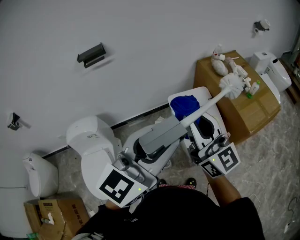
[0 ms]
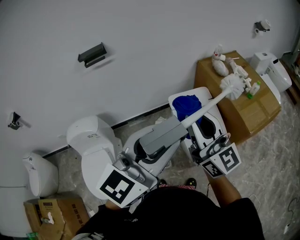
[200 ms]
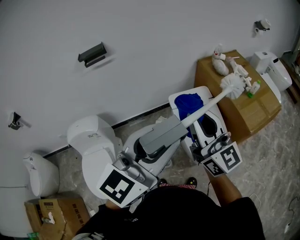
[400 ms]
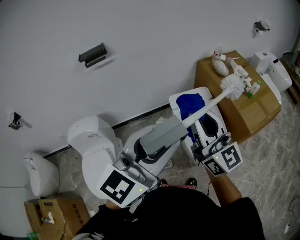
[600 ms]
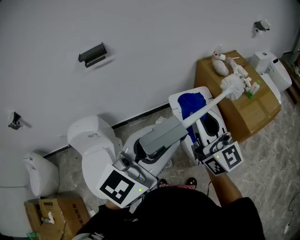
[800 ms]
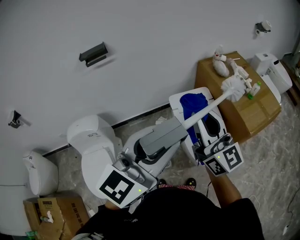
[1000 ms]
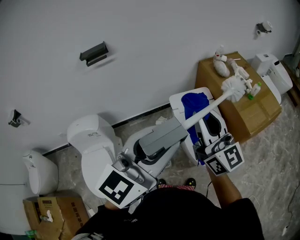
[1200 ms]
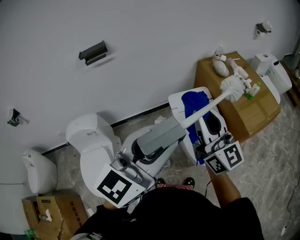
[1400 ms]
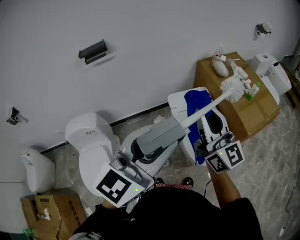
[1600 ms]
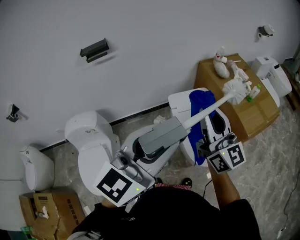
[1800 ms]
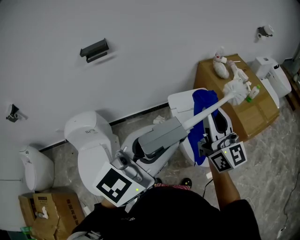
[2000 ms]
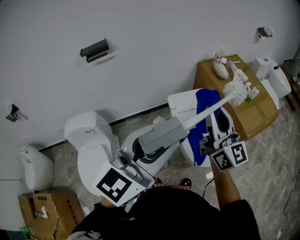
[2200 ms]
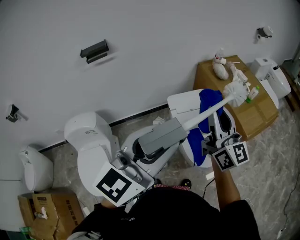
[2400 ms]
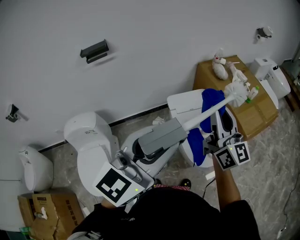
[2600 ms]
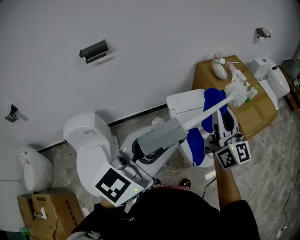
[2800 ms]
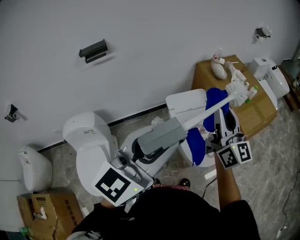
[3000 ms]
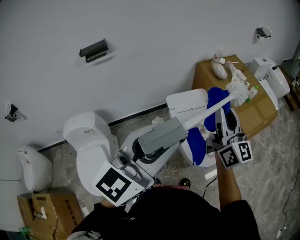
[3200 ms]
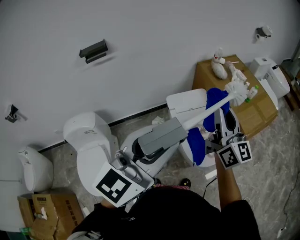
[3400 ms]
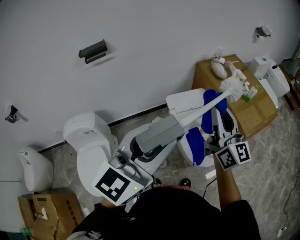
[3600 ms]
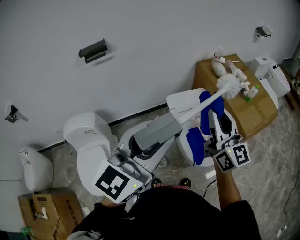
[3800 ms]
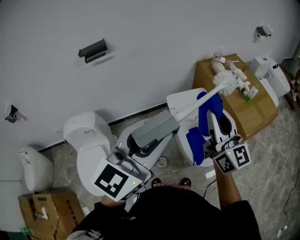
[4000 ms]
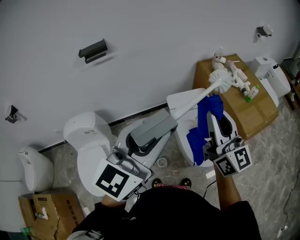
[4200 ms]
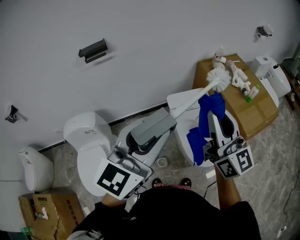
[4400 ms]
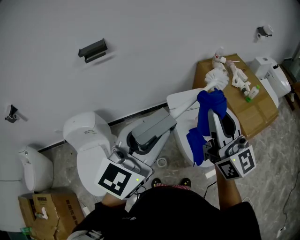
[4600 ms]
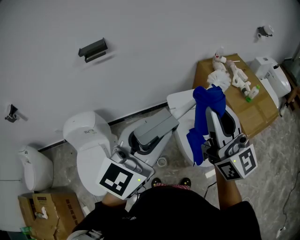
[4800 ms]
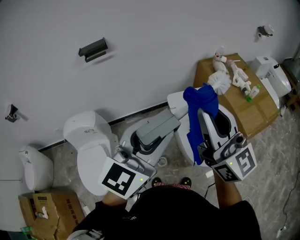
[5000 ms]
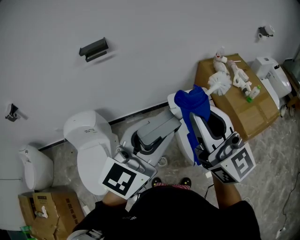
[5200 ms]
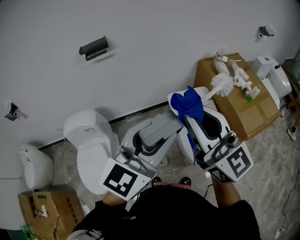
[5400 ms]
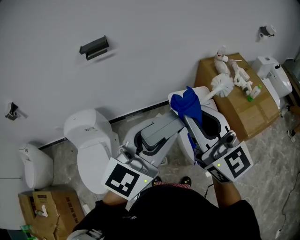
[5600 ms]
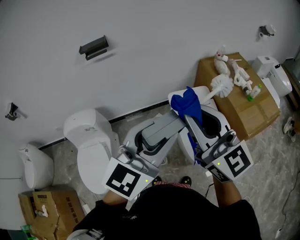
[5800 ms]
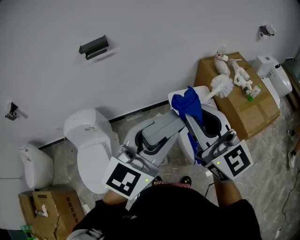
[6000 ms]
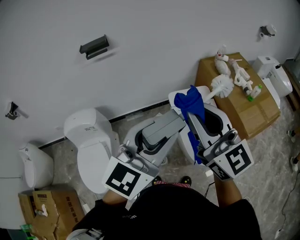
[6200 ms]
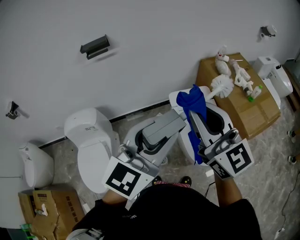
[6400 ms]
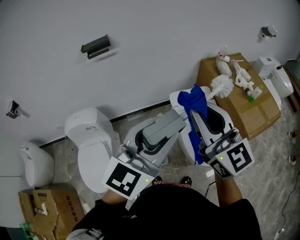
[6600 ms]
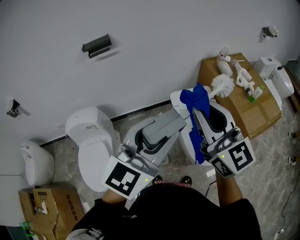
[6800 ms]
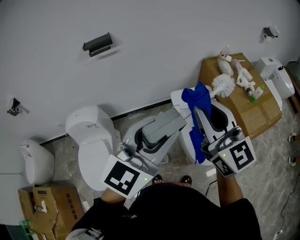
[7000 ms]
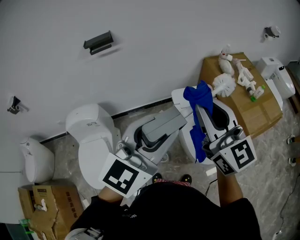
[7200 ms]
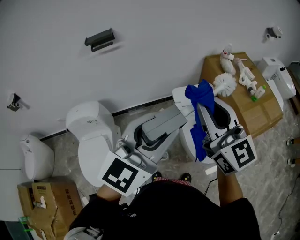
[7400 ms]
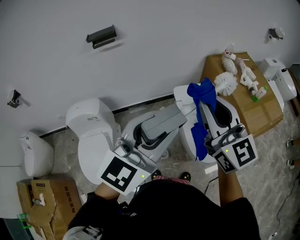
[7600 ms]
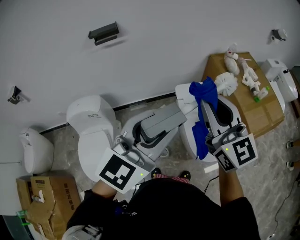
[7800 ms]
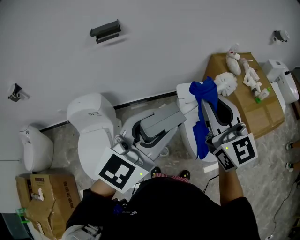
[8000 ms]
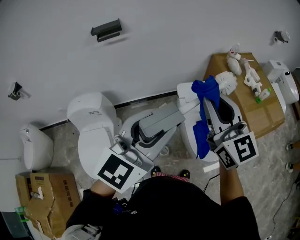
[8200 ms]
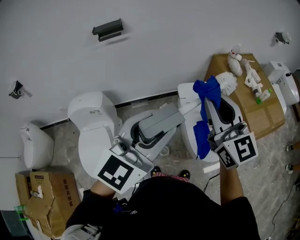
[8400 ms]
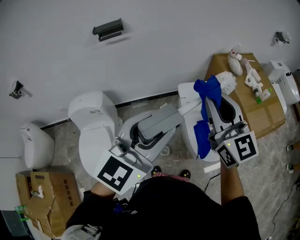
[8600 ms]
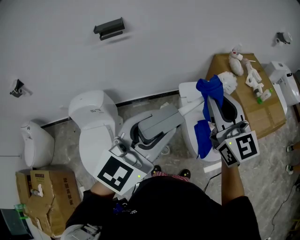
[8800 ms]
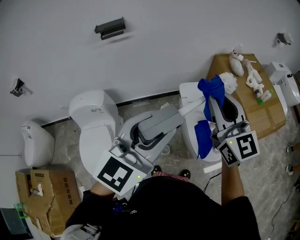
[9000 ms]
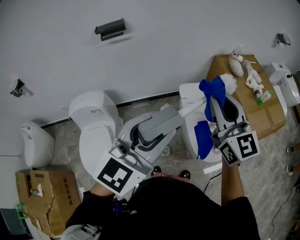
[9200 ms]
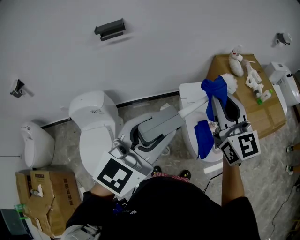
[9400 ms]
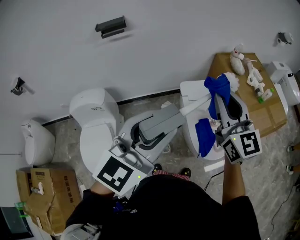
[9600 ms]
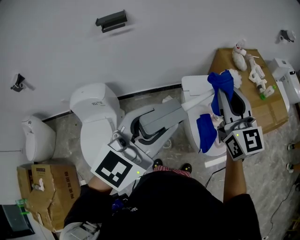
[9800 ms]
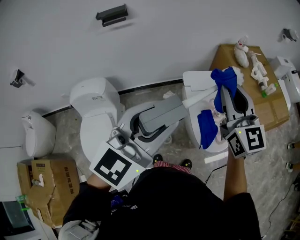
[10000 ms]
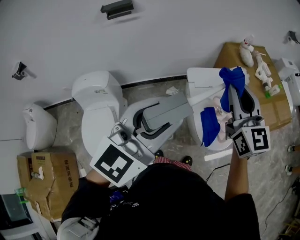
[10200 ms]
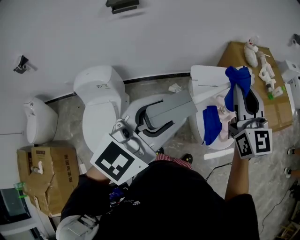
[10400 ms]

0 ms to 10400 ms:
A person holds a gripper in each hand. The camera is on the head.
0 ms to 1400 ms: The grippers stay close to where they were, moving slightly.
1400 ms to 3000 ms: The right gripper moves to the right, approximately 5 cm.
3000 ms to 4400 ms: The right gripper moves some 5 cm.
4400 ms to 6000 ms: The right gripper heads to the left, covering roughly 10 cm.
6000 ms to 7400 ms: The grippers move only a little.
7400 ms to 9000 ms: The grippers move only a little.
9000 ms to 10400 ms: The grippers stay close to where they were, moving slightly.

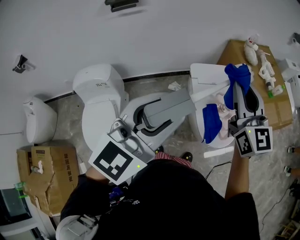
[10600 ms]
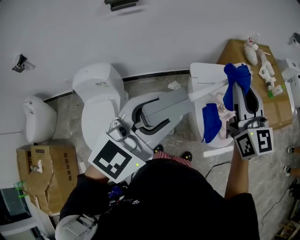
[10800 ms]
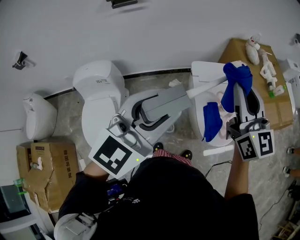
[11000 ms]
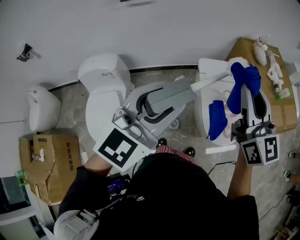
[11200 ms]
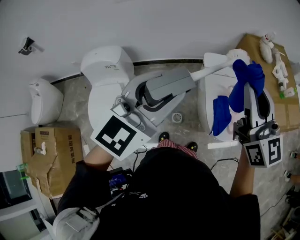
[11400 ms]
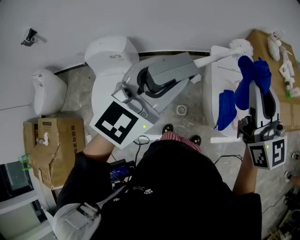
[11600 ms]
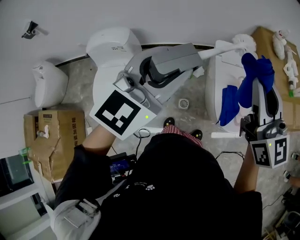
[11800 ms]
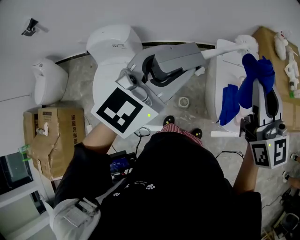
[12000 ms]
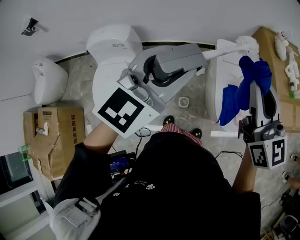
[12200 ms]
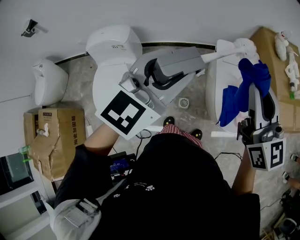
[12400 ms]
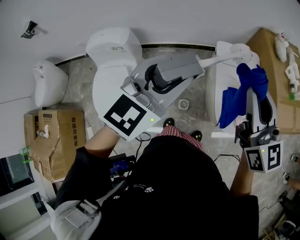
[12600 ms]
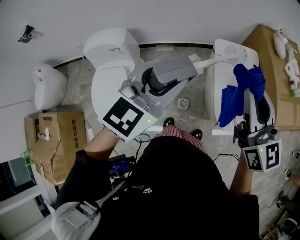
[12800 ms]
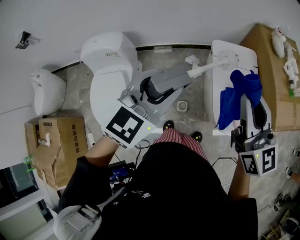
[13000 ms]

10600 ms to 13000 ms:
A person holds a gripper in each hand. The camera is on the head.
10600 ms to 11800 ms: The left gripper shifts about 5 cm to the left. Meanwhile the right gripper ends up roughly 5 cm from where it was.
11800 ms to 13000 ms: The left gripper shifts some 5 cm downward.

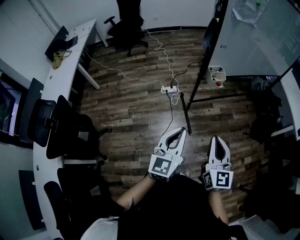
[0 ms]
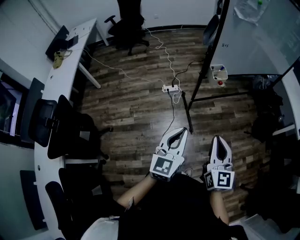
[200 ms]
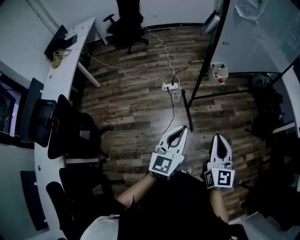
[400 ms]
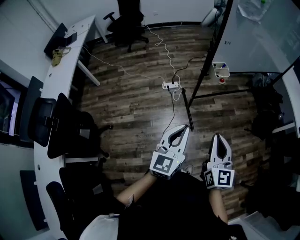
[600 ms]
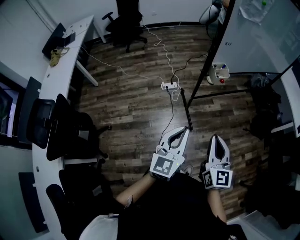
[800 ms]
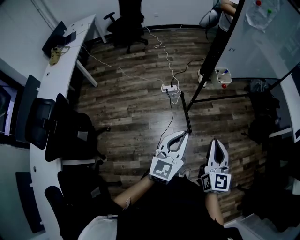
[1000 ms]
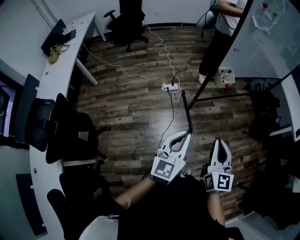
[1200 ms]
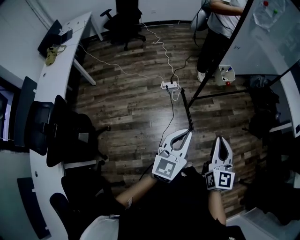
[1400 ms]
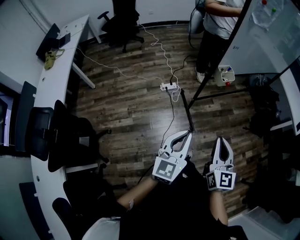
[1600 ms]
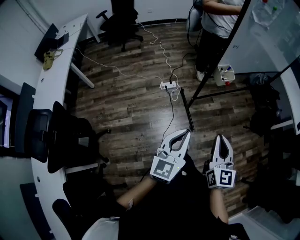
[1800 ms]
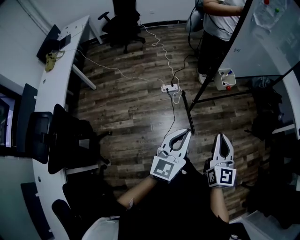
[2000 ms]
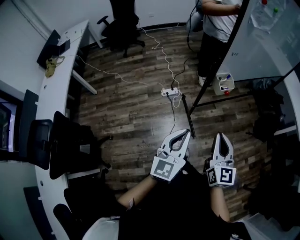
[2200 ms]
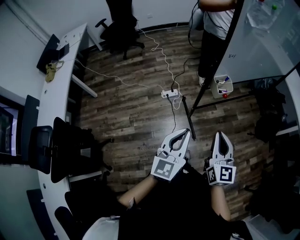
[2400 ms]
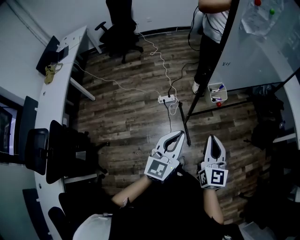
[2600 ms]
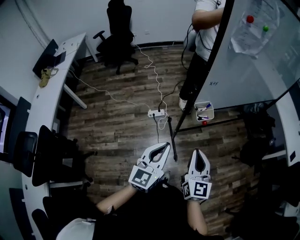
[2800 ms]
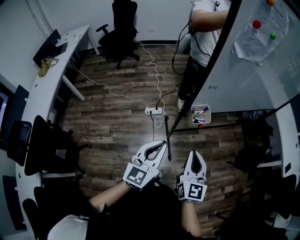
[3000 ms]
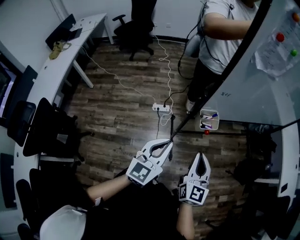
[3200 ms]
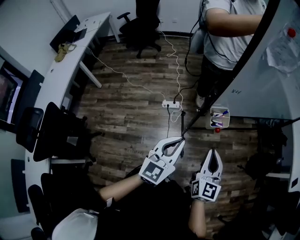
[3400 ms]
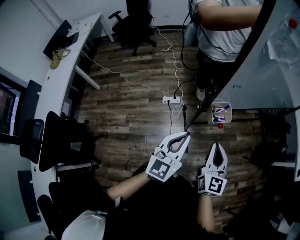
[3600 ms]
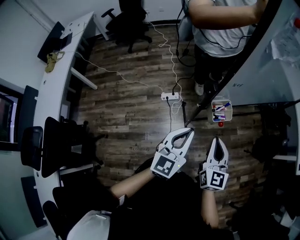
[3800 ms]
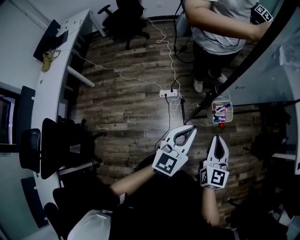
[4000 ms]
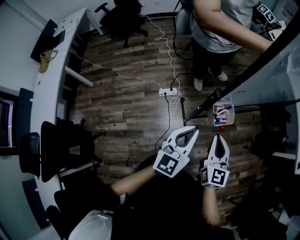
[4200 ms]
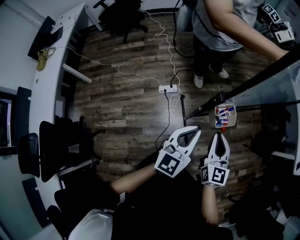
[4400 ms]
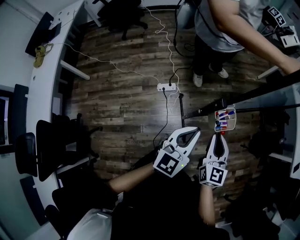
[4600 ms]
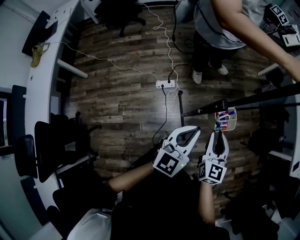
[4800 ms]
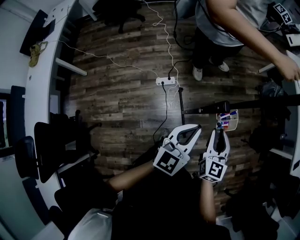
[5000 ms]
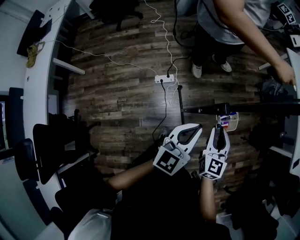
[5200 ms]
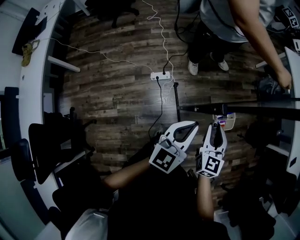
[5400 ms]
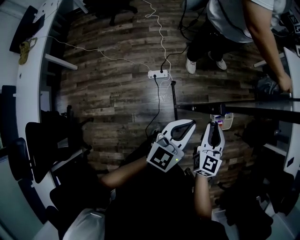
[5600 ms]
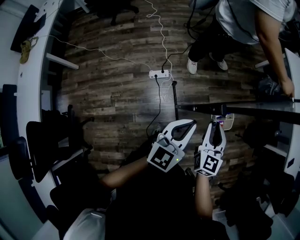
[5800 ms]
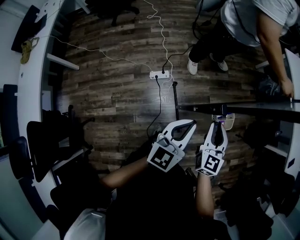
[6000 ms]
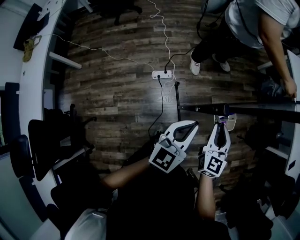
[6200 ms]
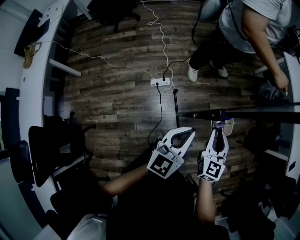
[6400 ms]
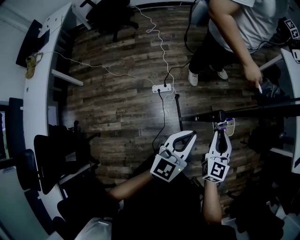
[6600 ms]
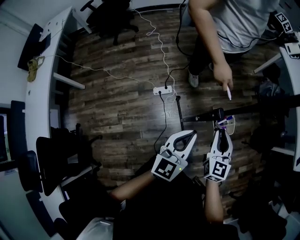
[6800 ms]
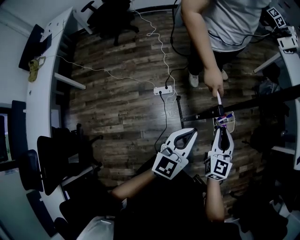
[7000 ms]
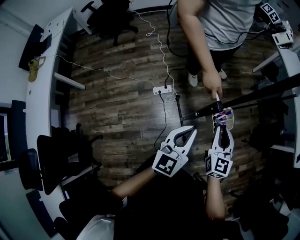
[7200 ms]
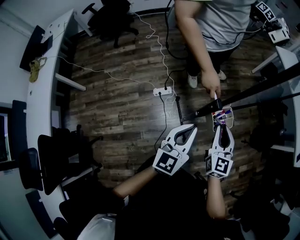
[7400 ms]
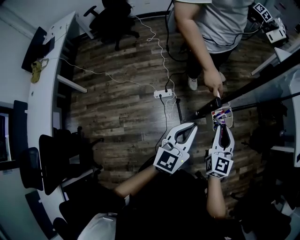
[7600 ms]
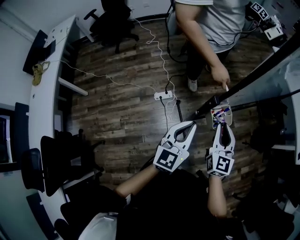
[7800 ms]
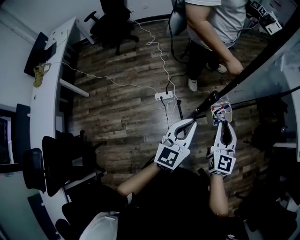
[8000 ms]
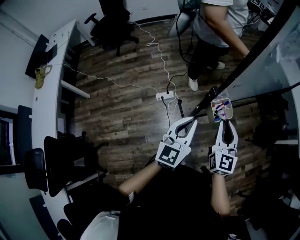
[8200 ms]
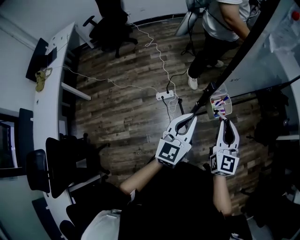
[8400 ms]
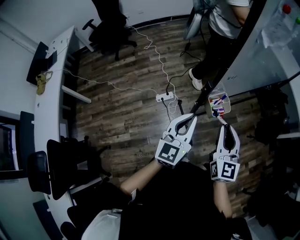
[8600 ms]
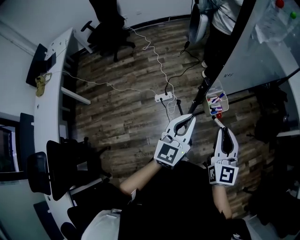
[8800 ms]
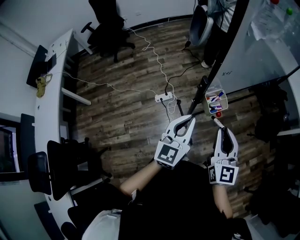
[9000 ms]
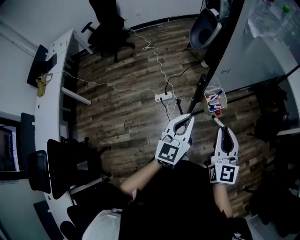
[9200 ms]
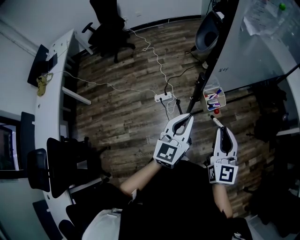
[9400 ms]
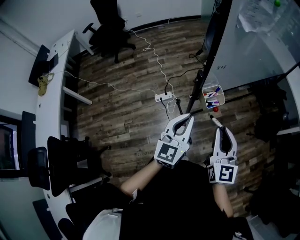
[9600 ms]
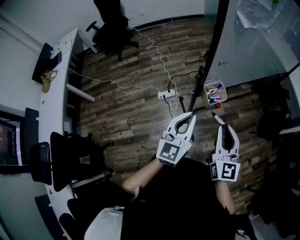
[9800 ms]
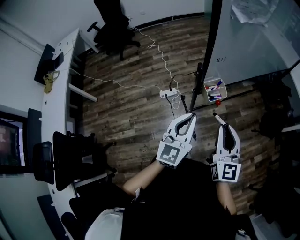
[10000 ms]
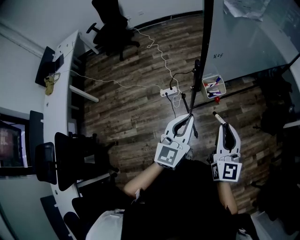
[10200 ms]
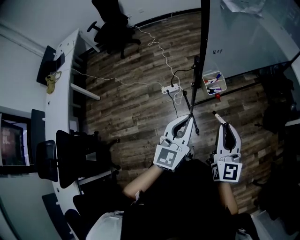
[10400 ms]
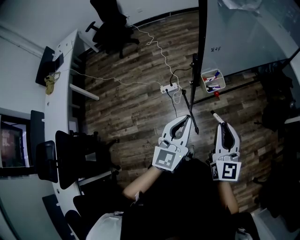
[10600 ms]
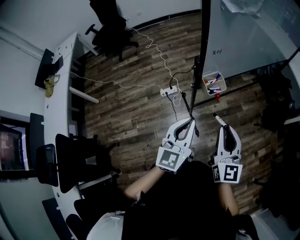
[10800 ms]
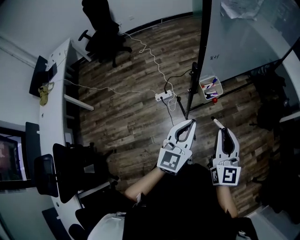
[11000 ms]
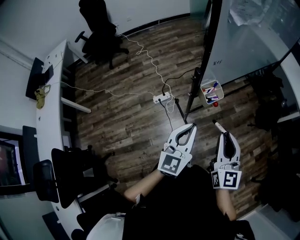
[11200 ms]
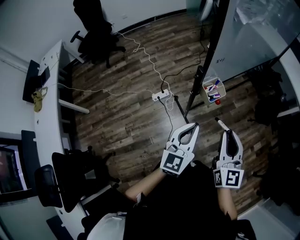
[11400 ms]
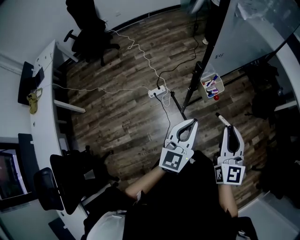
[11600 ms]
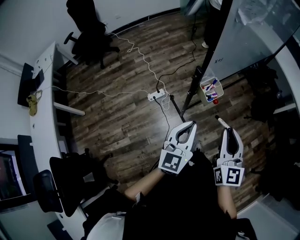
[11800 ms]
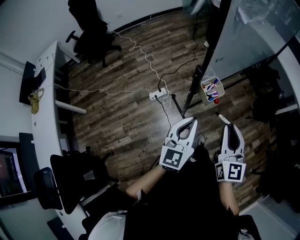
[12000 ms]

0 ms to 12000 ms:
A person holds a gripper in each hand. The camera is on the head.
0 ms to 1600 ms: The grippers both shift to the left by approximately 5 cm.
1600 ms to 3000 ms: Both grippers travel together forward, about 20 cm.
3000 ms to 4400 ms: The left gripper heads forward, covering roughly 15 cm; the right gripper heads forward and downward, covering roughly 15 cm.
4400 ms to 6000 ms: The right gripper goes roughly 5 cm forward. The left gripper changes place by roughly 5 cm.
6000 ms to 7600 ms: The right gripper changes place by some 5 cm.
7600 ms to 9000 ms: The left gripper moves roughly 5 cm, while the right gripper is displaced backward and upward by some 15 cm.
9000 ms to 10400 ms: Both grippers move backward, roughly 10 cm.
10400 ms to 12000 ms: The left gripper ends up approximately 5 cm from where it was.
